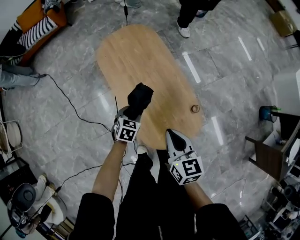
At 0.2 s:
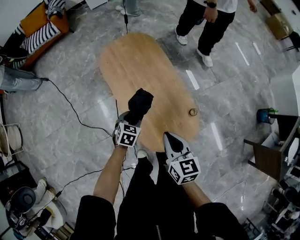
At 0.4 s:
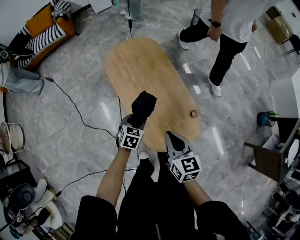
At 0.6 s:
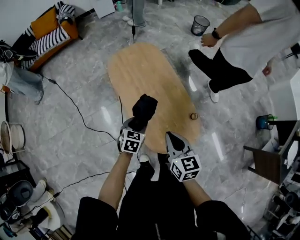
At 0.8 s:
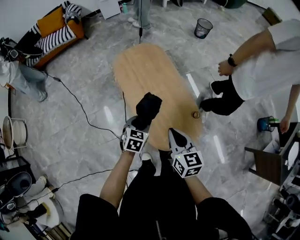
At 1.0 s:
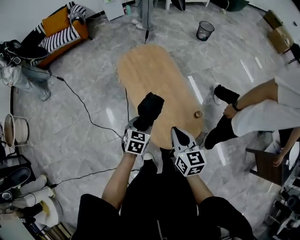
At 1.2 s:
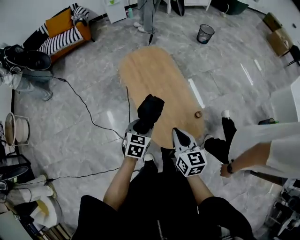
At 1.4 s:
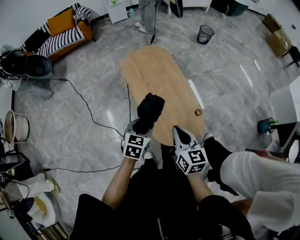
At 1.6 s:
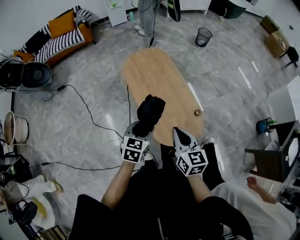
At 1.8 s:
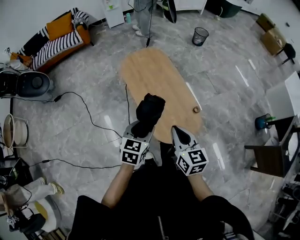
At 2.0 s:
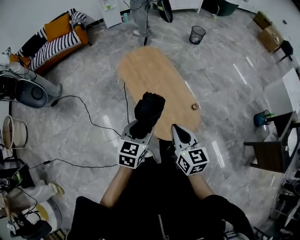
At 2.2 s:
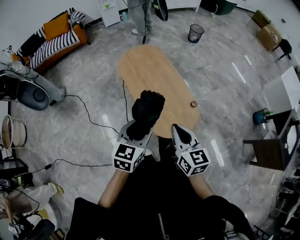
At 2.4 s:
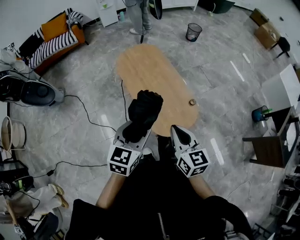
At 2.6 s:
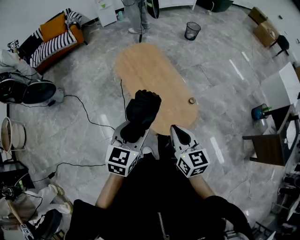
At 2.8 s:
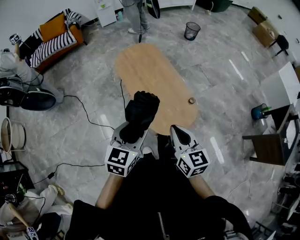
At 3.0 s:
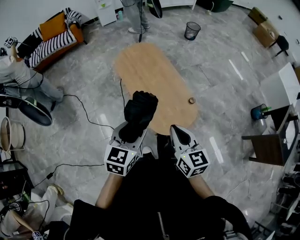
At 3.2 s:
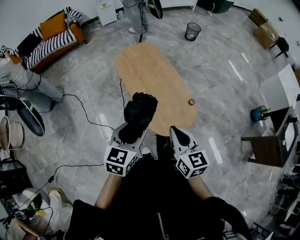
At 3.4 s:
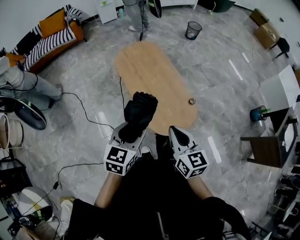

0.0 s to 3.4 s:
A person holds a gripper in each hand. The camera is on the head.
0.0 to 1.6 s: The left gripper heads upward and backward, covering some 30 cm, and rotates some 20 degrees, while the right gripper goes roughly 20 cm backward and upward.
1.6 to 3.4 s: The left gripper travels upward and backward by roughly 10 cm. The right gripper ends up some 5 cm from where it was.

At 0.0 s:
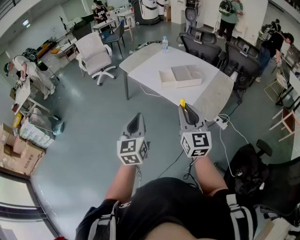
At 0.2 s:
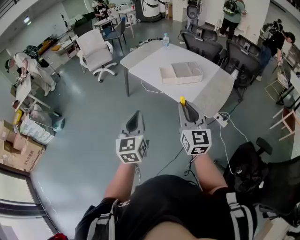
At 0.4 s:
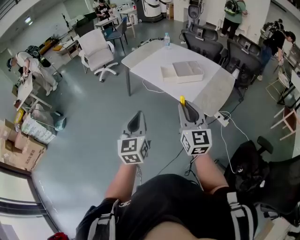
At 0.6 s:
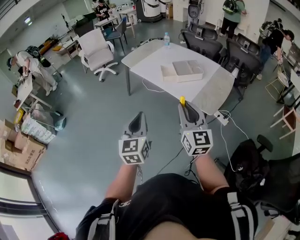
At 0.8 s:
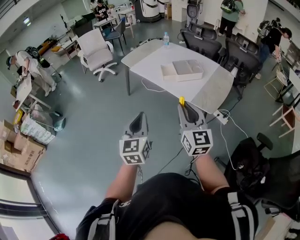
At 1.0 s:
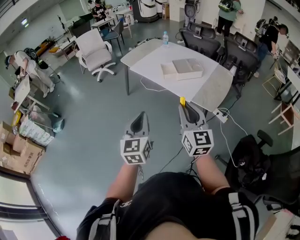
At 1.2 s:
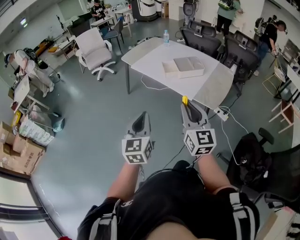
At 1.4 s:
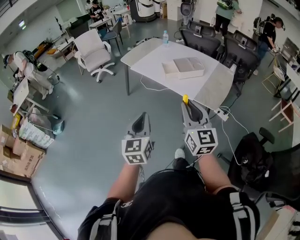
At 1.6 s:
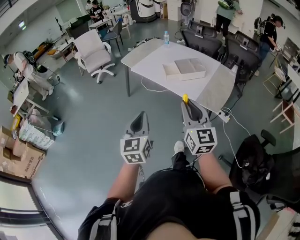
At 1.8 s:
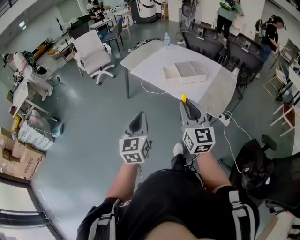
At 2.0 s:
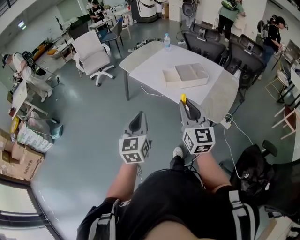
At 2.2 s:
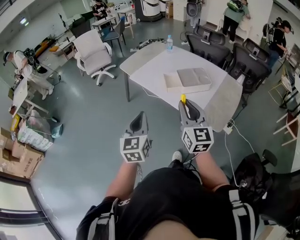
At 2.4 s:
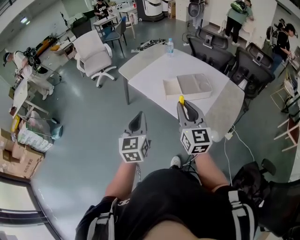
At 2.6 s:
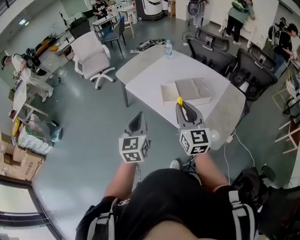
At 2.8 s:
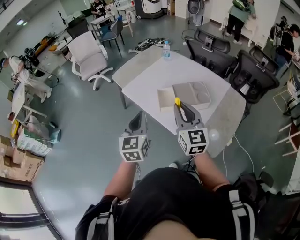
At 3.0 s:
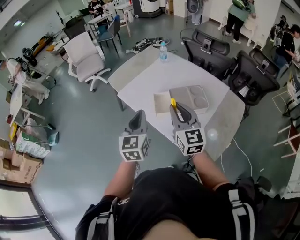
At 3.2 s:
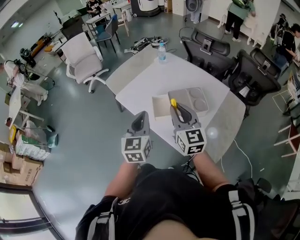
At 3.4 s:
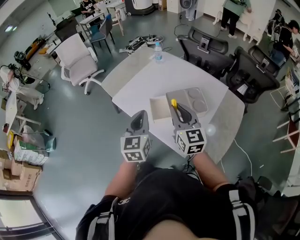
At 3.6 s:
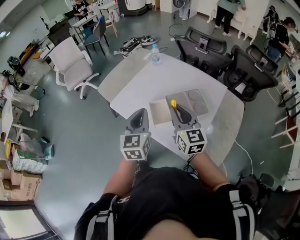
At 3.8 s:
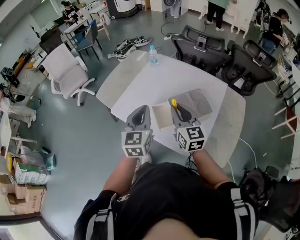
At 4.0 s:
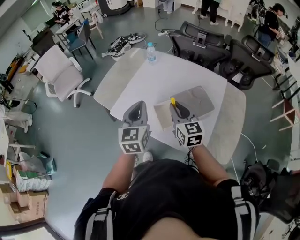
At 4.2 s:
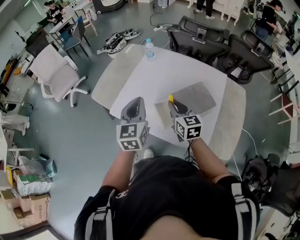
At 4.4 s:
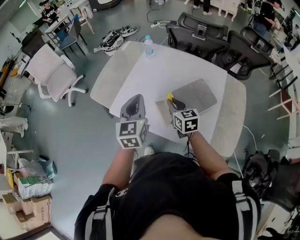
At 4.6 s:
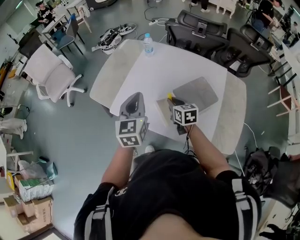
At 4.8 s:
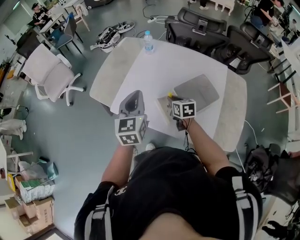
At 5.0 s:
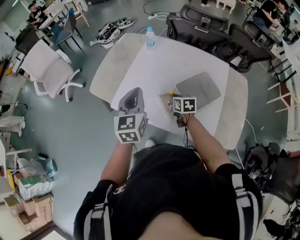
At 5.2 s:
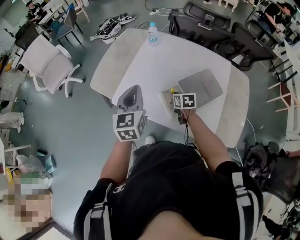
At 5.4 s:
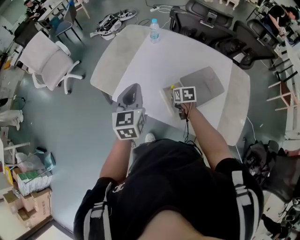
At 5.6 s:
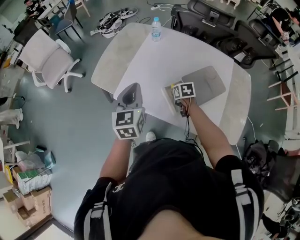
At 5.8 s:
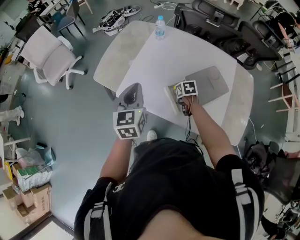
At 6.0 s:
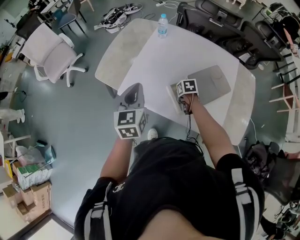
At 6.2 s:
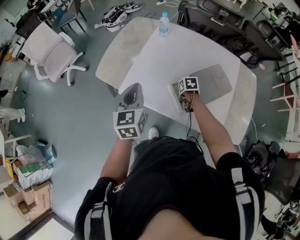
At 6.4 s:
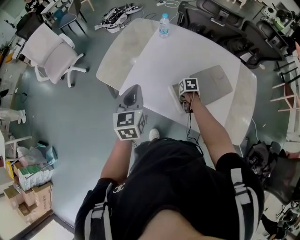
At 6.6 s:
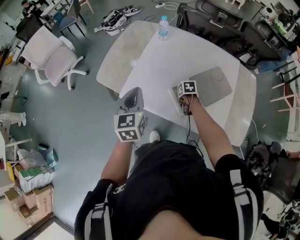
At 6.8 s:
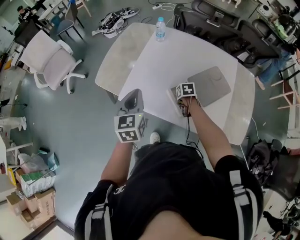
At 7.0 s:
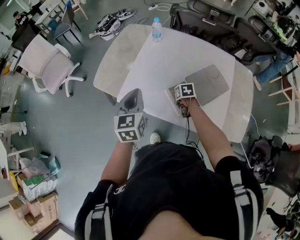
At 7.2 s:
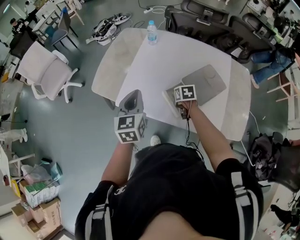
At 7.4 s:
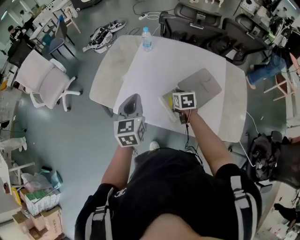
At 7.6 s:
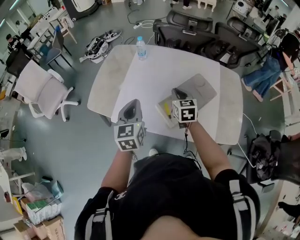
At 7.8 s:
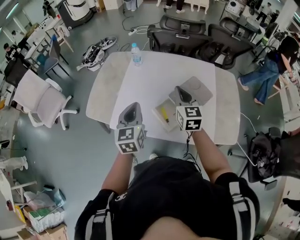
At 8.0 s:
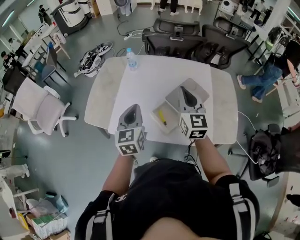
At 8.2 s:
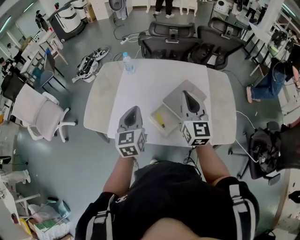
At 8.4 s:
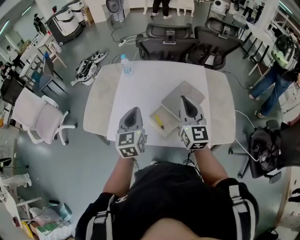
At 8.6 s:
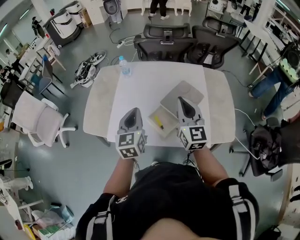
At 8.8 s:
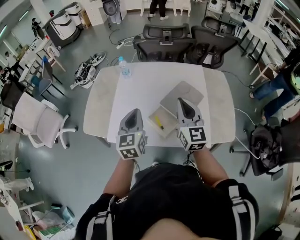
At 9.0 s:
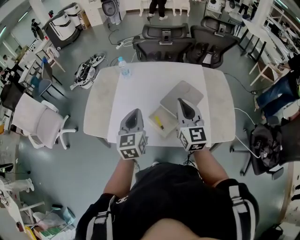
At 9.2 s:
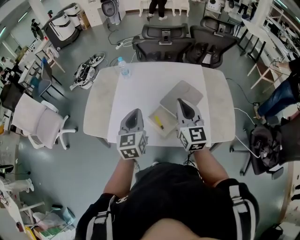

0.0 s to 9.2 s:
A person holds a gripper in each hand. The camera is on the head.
0.0 to 1.6 s: The right gripper goes about 5 cm to the left. The left gripper shifts by approximately 5 cm.
1.6 to 3.0 s: The two grippers travel together, forward, some 40 cm.
3.0 to 4.6 s: The left gripper is displaced forward by about 25 cm, while the right gripper goes approximately 35 cm forward and downward, and tilts its fingers approximately 30 degrees downward.
4.6 to 6.2 s: The left gripper heads to the left, covering roughly 10 cm. The right gripper is displaced downward by approximately 15 cm, and tips its fingers downward by about 40 degrees.
6.2 to 7.6 s: The right gripper goes roughly 20 cm upward, and angles its fingers upward, by approximately 40 degrees; the left gripper ends up some 5 cm from where it was.
7.6 to 9.2 s: The right gripper is displaced upward, backward and to the right by roughly 15 cm, and rotates approximately 30 degrees, while the left gripper is displaced to the right by approximately 5 cm.
